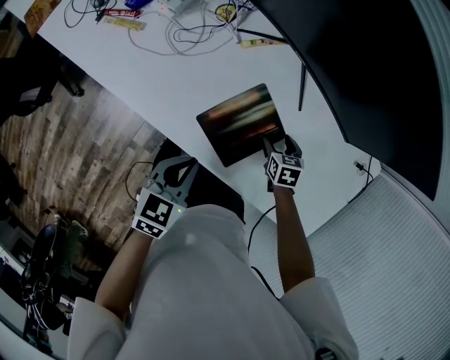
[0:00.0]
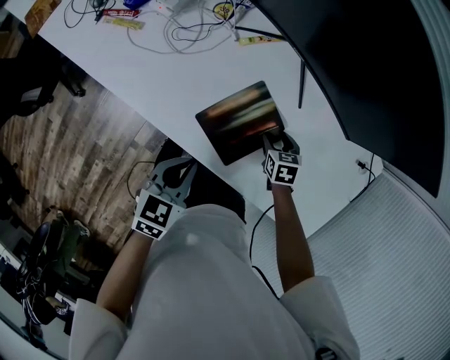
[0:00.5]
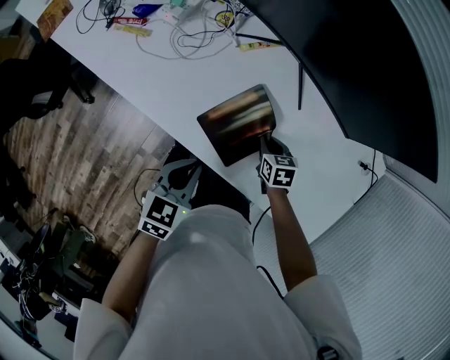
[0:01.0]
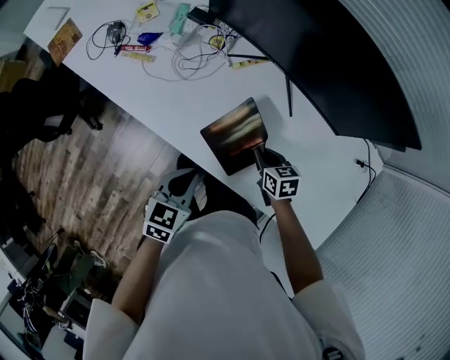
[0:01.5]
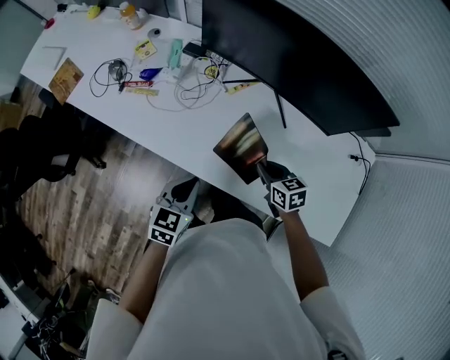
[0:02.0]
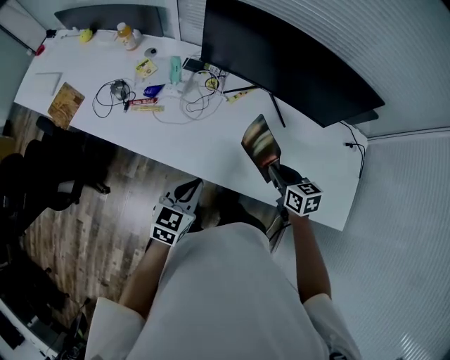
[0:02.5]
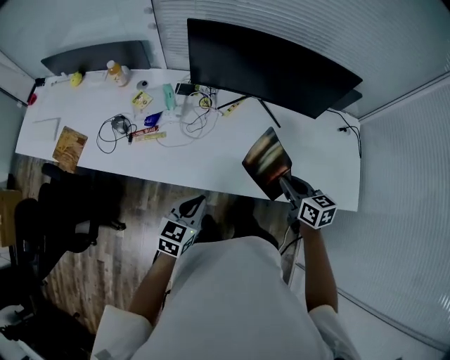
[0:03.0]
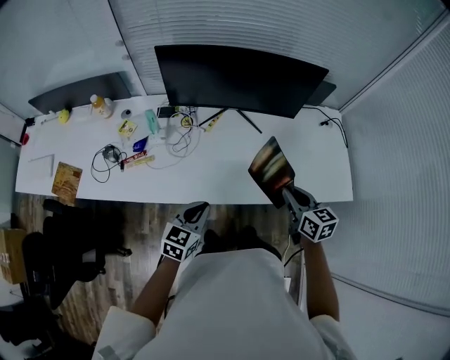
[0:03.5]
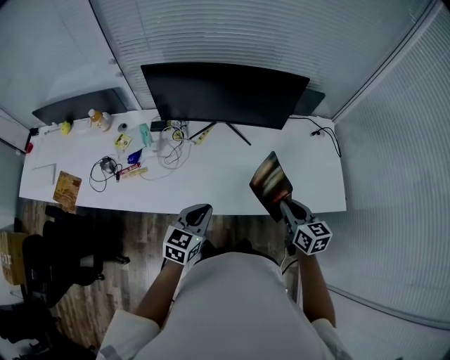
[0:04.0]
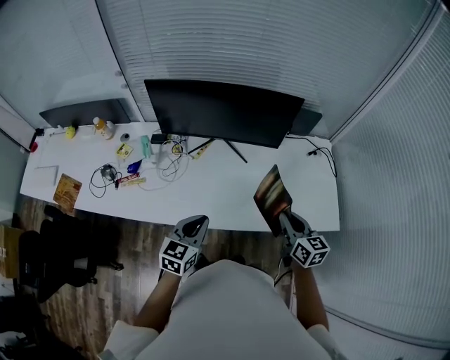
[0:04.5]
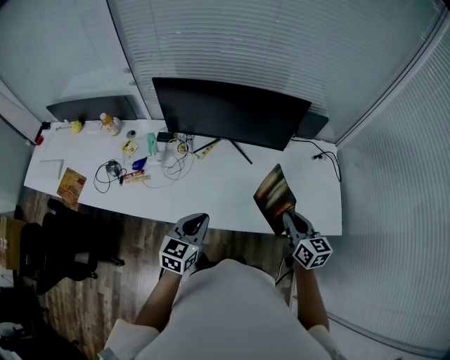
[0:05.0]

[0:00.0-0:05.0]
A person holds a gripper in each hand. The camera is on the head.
0:00.0 to 0:02.5: The left gripper shifts some 15 cm to the left and upward, and turns by roughly 20 degrees; the right gripper shifts about 25 cm upward and to the left, rotates approximately 30 degrees, and closes its fingers.
0:02.5 to 0:05.0: The left gripper shifts approximately 10 cm to the right and upward, while the right gripper moves to the right, upward and backward, about 20 cm, and swivels some 30 degrees.

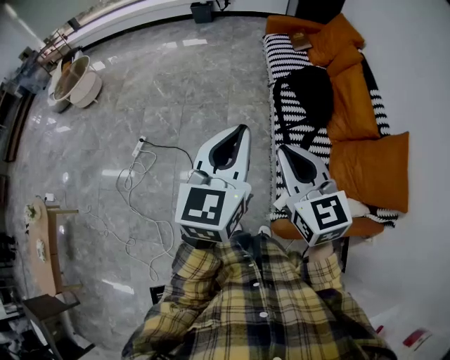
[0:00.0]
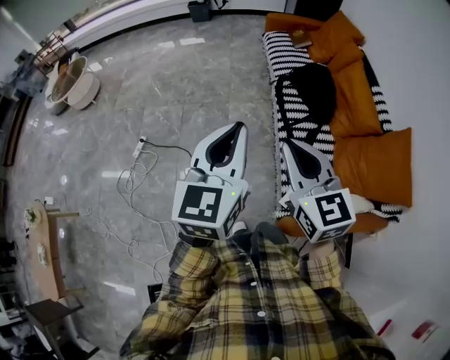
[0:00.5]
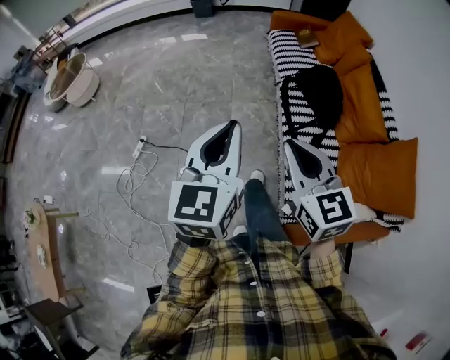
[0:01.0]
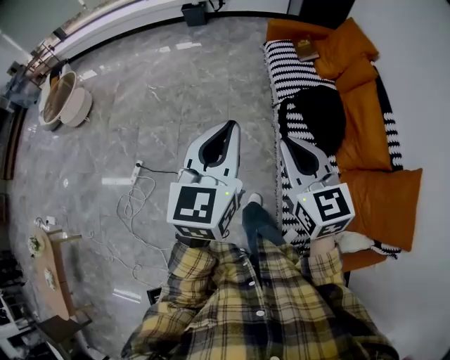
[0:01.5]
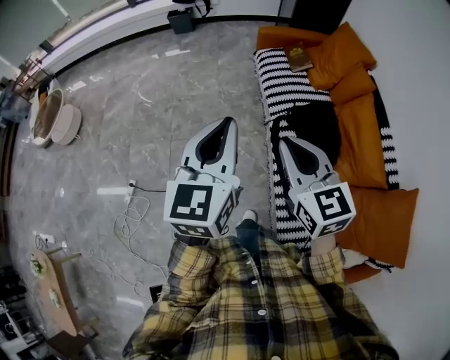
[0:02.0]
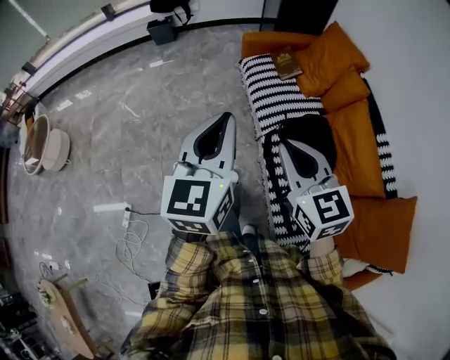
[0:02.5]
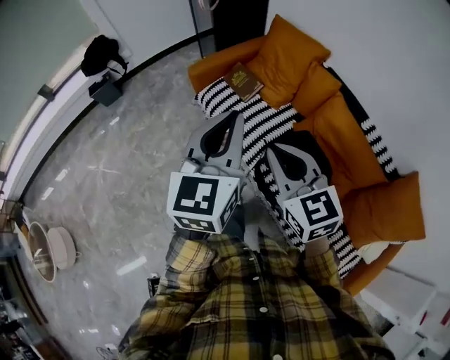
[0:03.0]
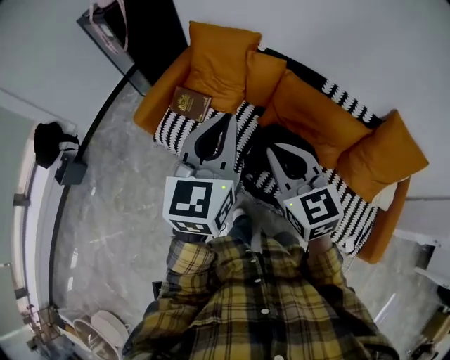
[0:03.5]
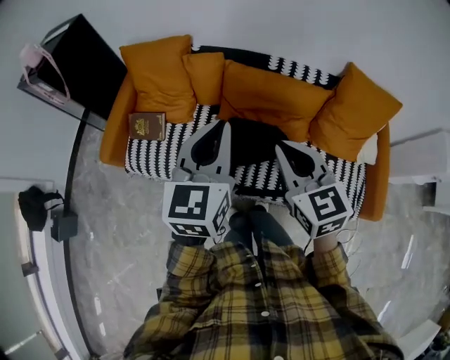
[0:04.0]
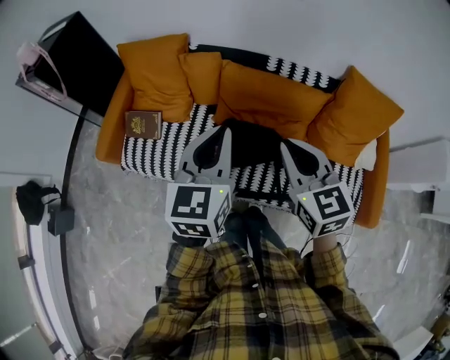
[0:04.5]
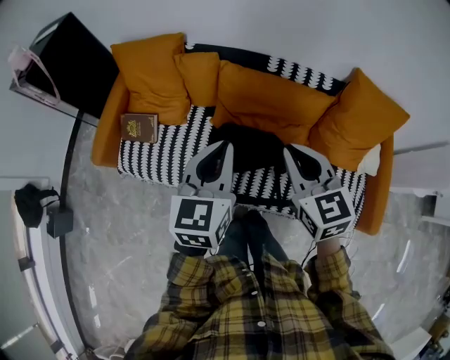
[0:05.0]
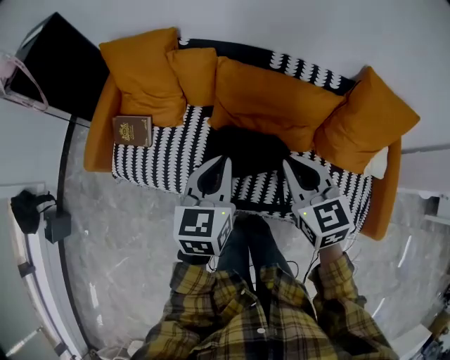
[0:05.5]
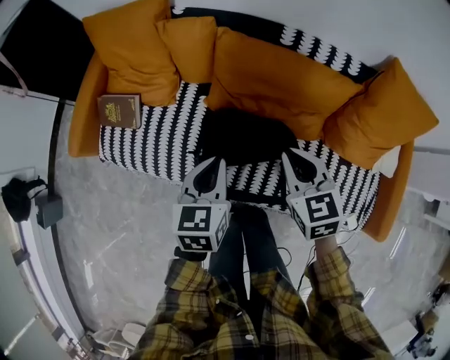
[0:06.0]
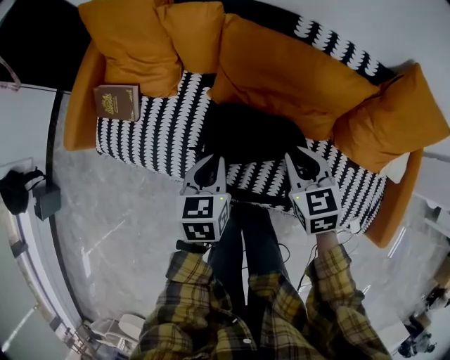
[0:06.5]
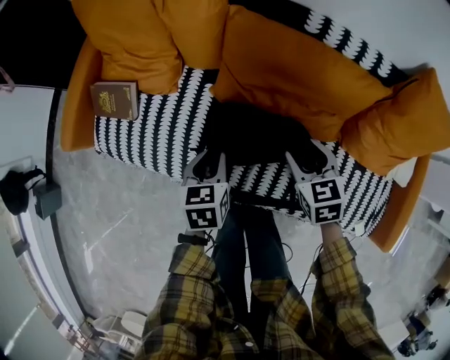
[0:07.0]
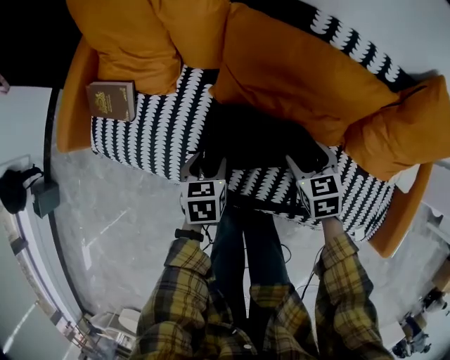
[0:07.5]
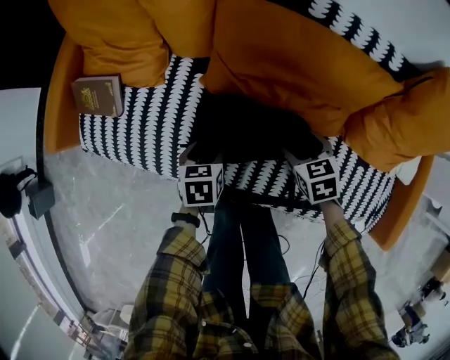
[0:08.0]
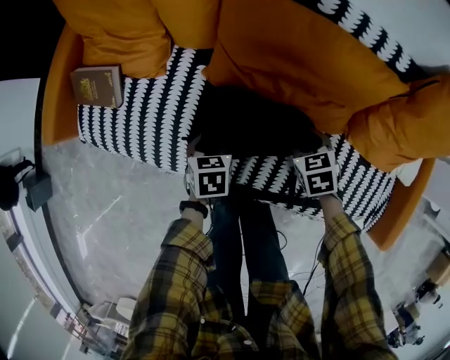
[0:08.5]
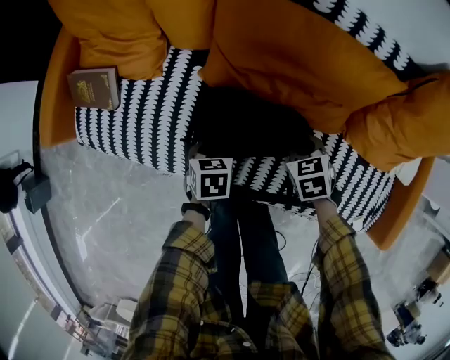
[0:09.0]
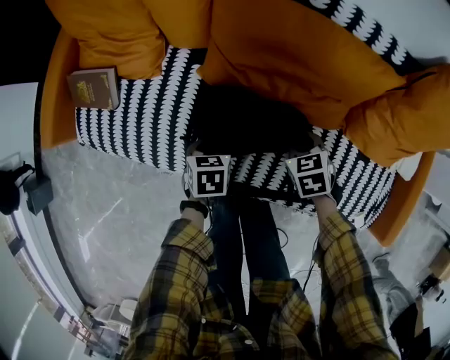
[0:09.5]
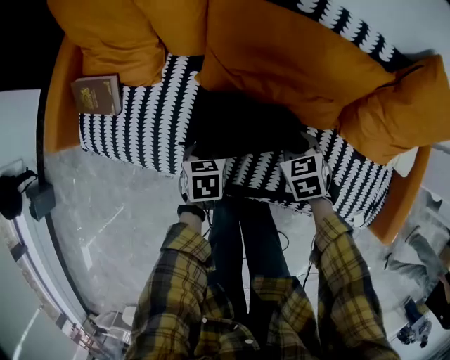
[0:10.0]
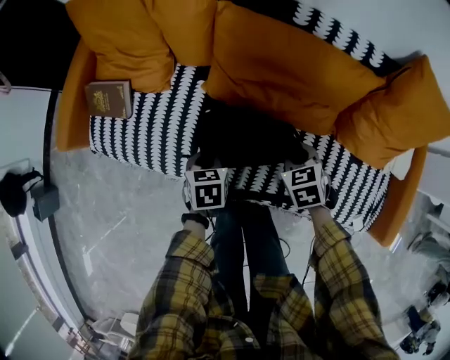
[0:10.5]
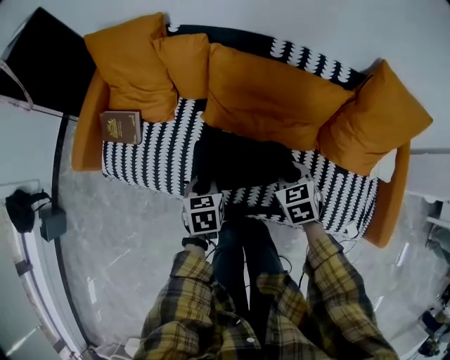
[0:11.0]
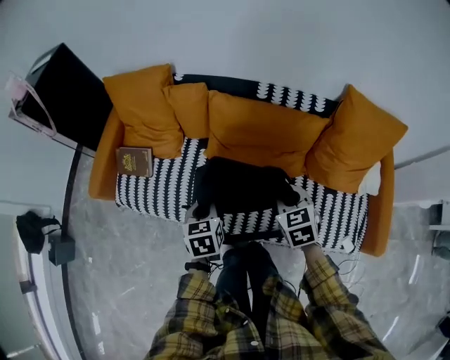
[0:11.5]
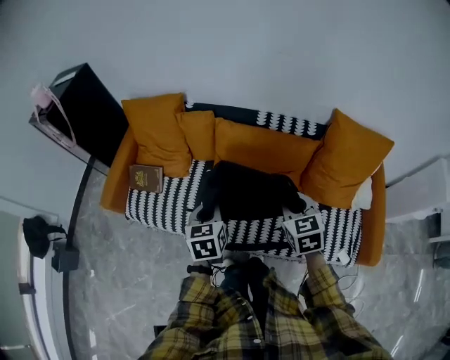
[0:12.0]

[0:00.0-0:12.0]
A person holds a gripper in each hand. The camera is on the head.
0:00.0 to 0:02.0: Both grippers travel together forward, approximately 35 cm.
0:02.0 to 0:04.0: The left gripper changes place by approximately 50 cm, and turns by roughly 70 degrees. The right gripper changes place by some 30 cm, and turns by approximately 70 degrees.
0:04.0 to 0:06.0: Both grippers travel together downward, about 25 cm. The left gripper changes its angle by about 30 degrees.
0:06.0 to 0:08.0: Both grippers travel together downward, some 25 cm. The left gripper turns by approximately 20 degrees, and opens up. Meanwhile the right gripper changes its angle by some 20 degrees, and opens up.
0:08.0 to 0:10.0: The left gripper closes its fingers, while the right gripper closes up.
0:10.0 to 0:12.0: Both grippers travel together upward, some 35 cm. The right gripper turns by about 30 degrees. The left gripper swivels approximately 30 degrees.

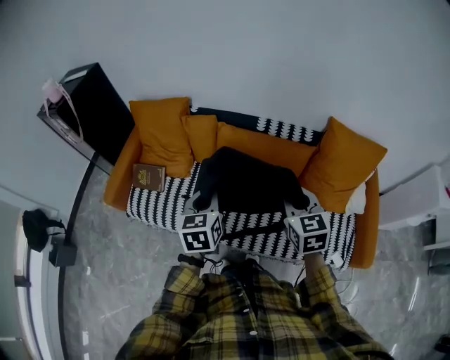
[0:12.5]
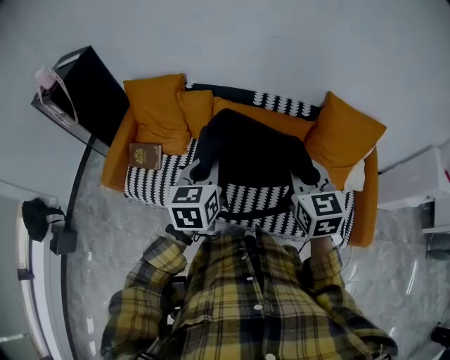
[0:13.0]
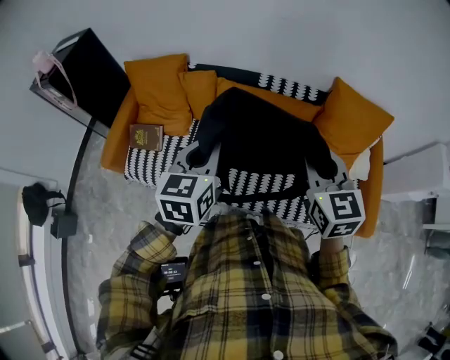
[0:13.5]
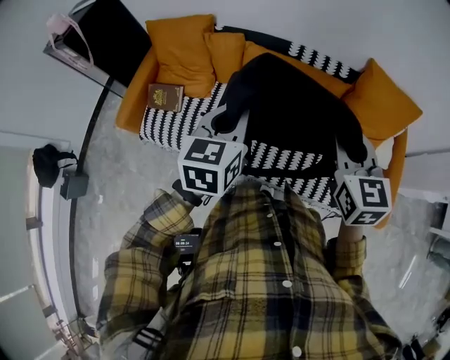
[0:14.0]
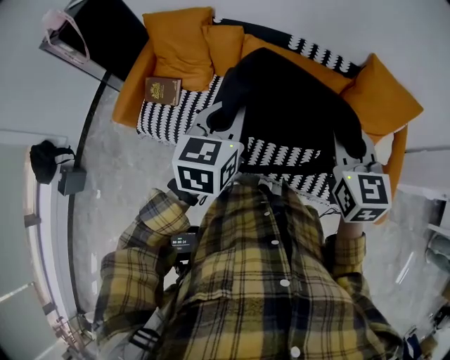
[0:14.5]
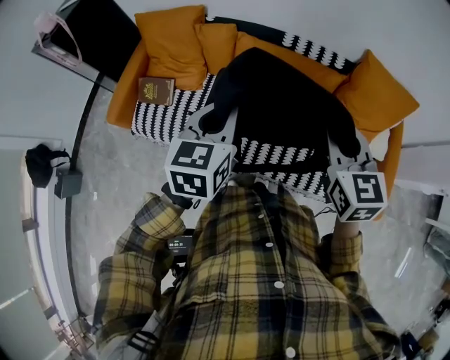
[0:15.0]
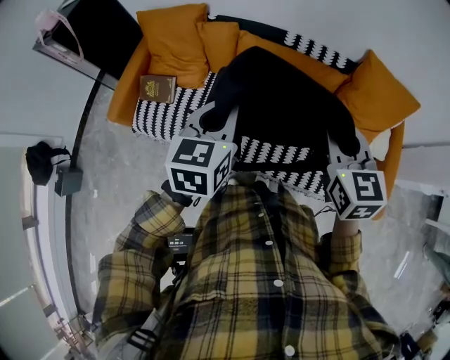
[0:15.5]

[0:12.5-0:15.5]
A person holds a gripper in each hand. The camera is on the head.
0:12.5 to 0:14.0: The two grippers go about 5 cm upward.
0:14.0 to 0:15.5: The grippers move only a little.

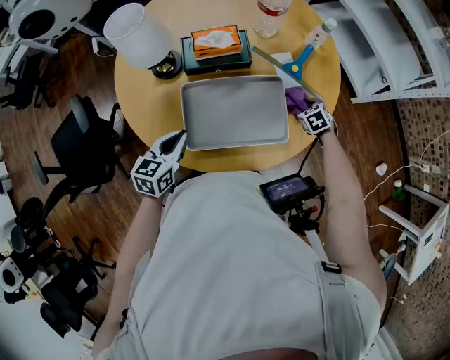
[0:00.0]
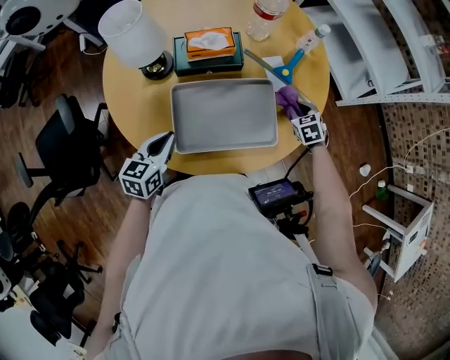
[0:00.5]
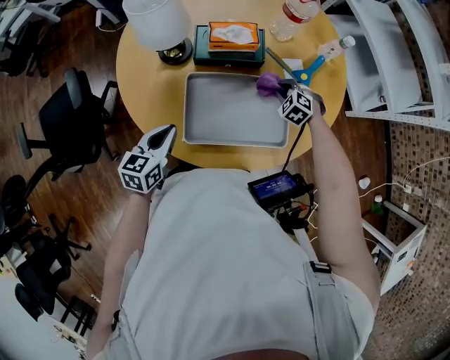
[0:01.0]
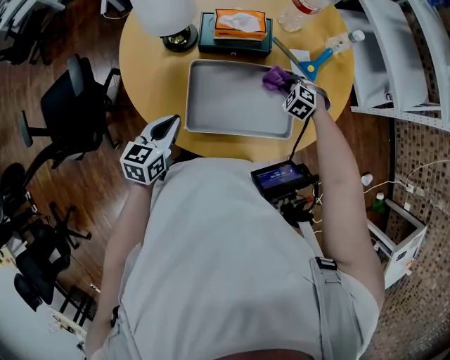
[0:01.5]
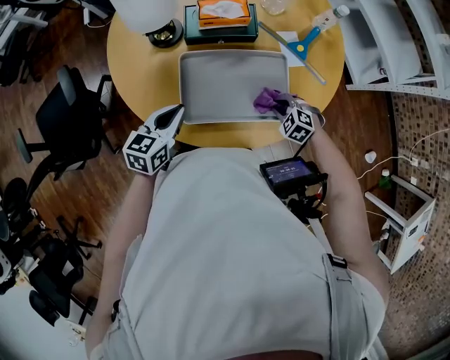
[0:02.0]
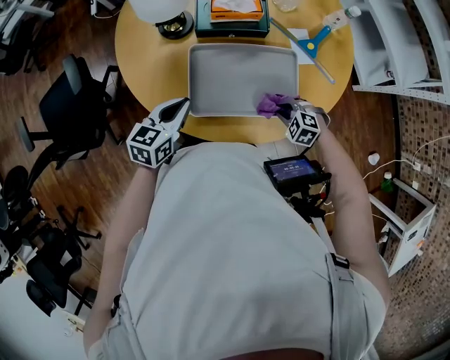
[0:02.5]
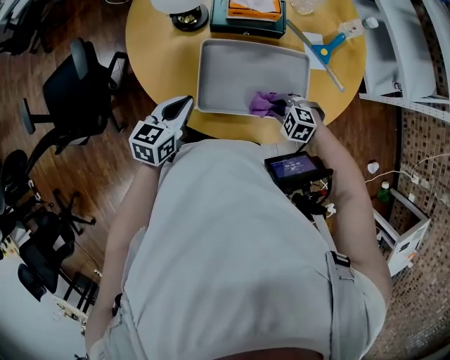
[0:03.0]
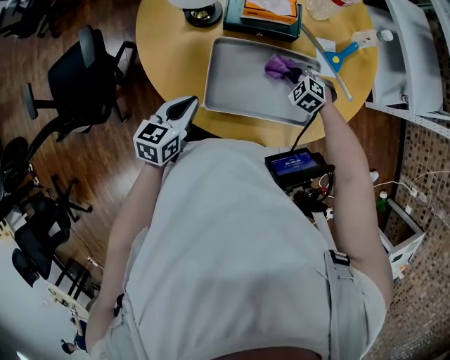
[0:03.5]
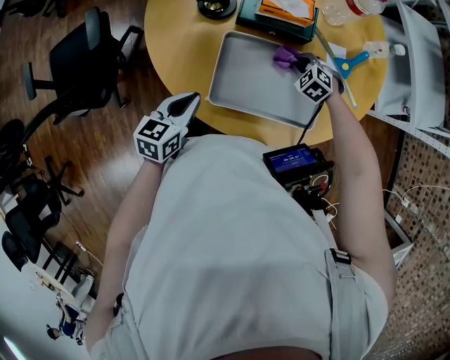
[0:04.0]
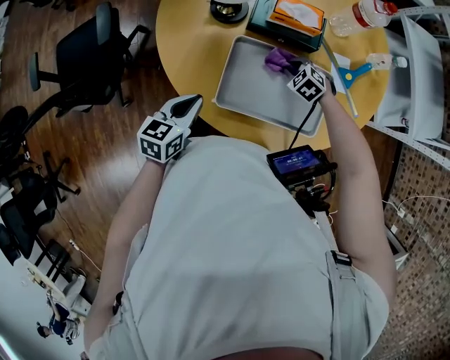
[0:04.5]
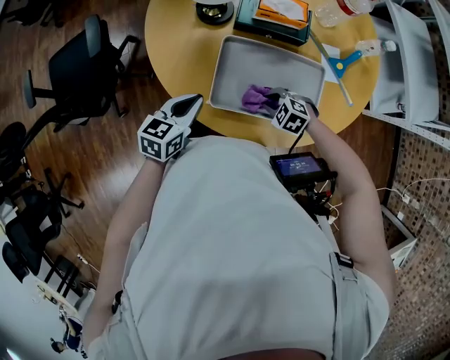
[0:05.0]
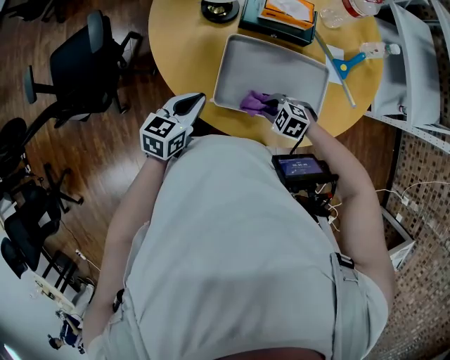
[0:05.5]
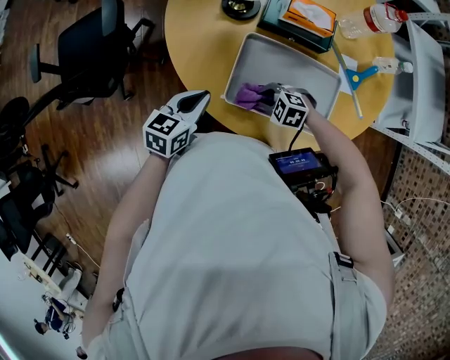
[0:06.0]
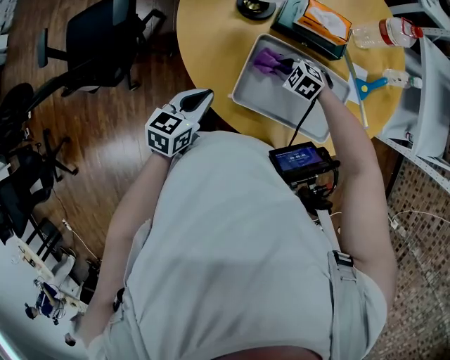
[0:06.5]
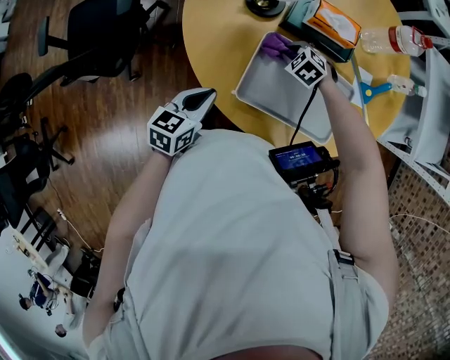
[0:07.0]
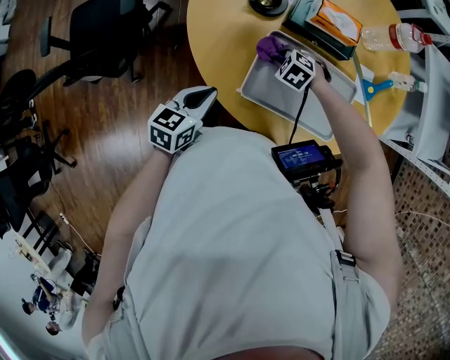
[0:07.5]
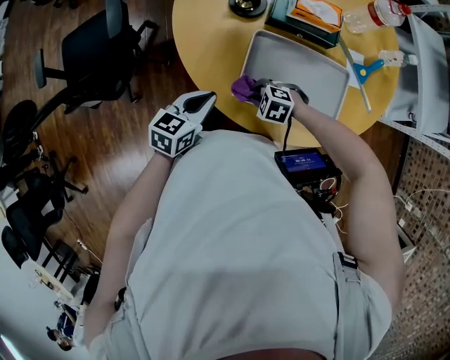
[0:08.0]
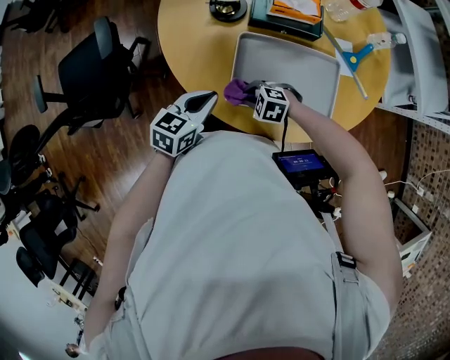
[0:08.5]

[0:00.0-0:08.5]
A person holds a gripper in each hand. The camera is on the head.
0:00.0 to 0:02.0: The right gripper is displaced to the left and backward by about 15 cm, swivels roughly 40 degrees, and closes its fingers.
0:02.0 to 0:04.0: The right gripper goes approximately 15 cm forward. Meanwhile the left gripper heads to the left, covering about 5 cm.
0:04.0 to 0:06.5: The right gripper shifts by roughly 15 cm.
0:06.5 to 0:08.5: The right gripper moves approximately 15 cm.
